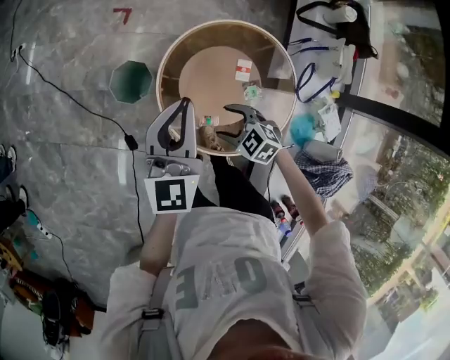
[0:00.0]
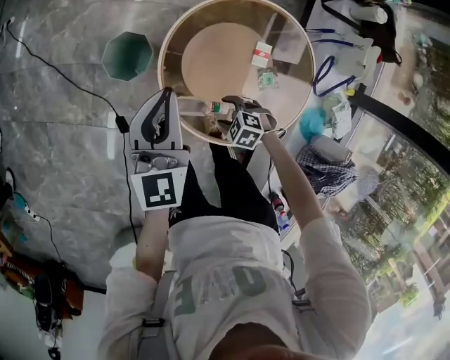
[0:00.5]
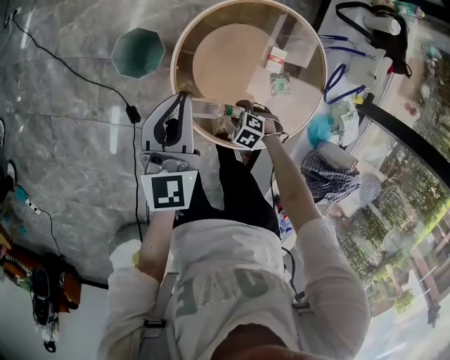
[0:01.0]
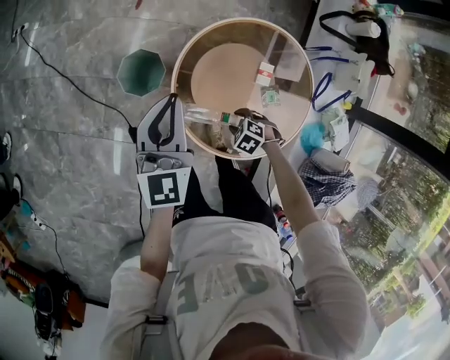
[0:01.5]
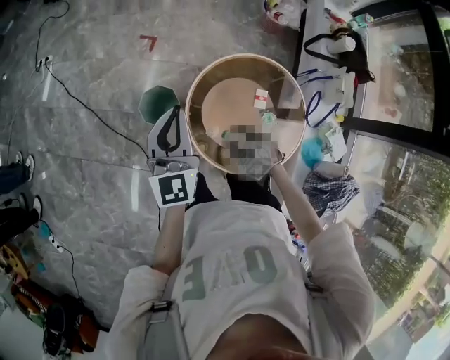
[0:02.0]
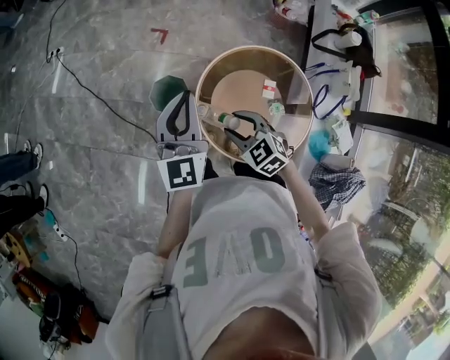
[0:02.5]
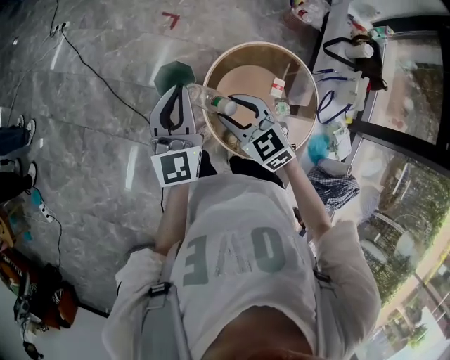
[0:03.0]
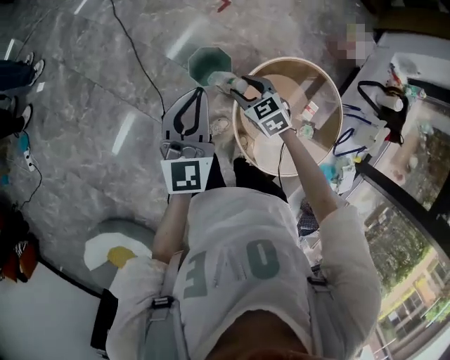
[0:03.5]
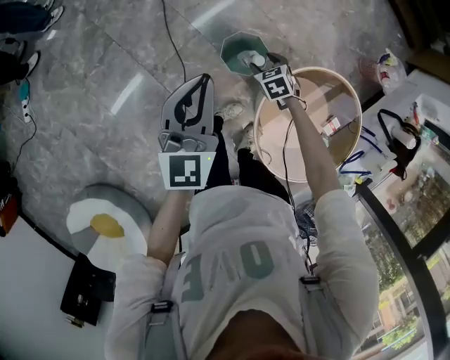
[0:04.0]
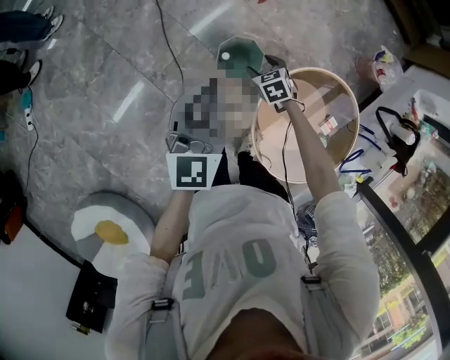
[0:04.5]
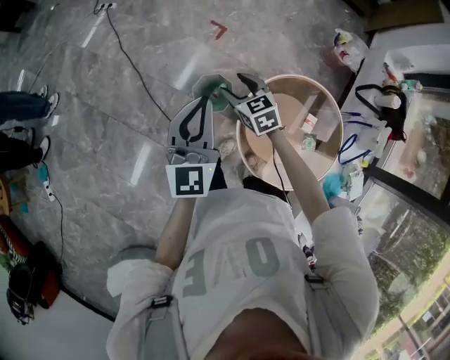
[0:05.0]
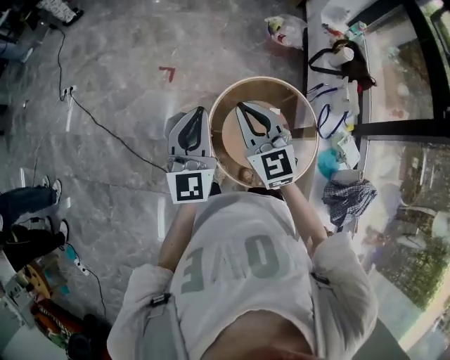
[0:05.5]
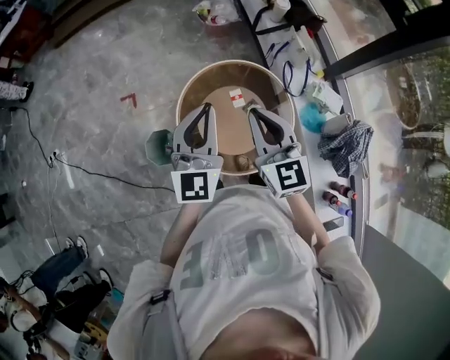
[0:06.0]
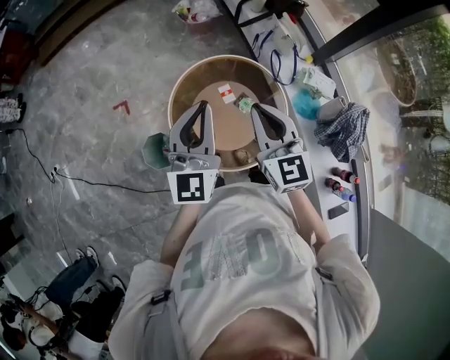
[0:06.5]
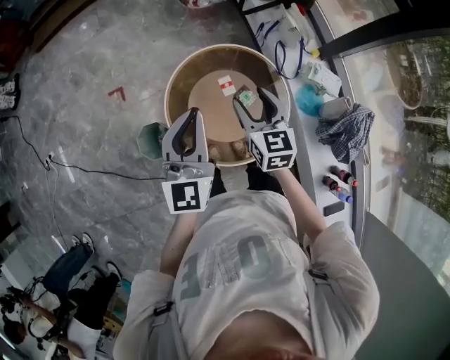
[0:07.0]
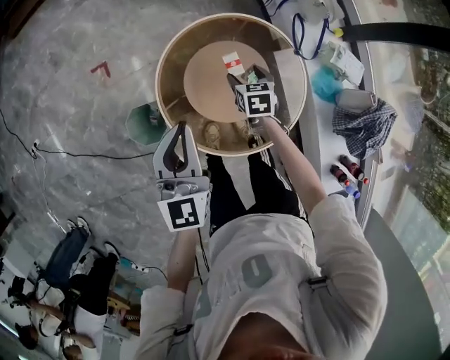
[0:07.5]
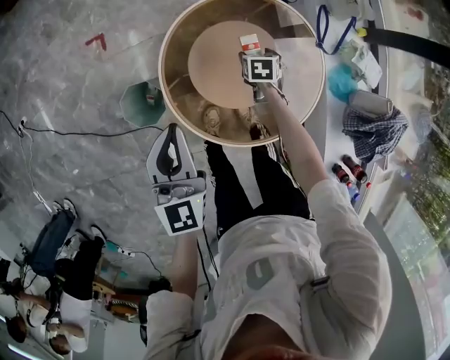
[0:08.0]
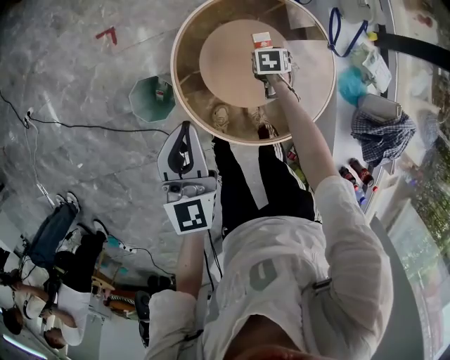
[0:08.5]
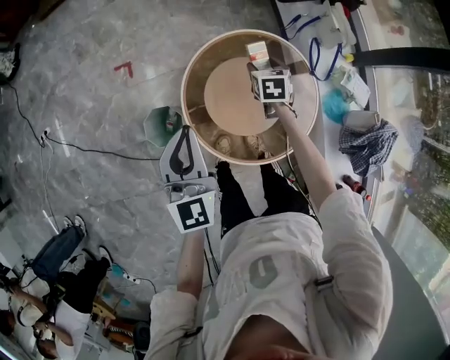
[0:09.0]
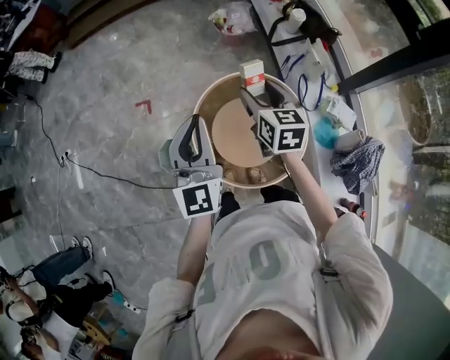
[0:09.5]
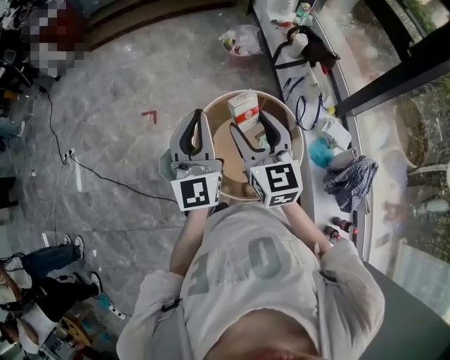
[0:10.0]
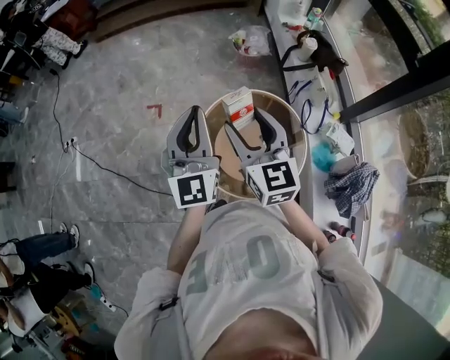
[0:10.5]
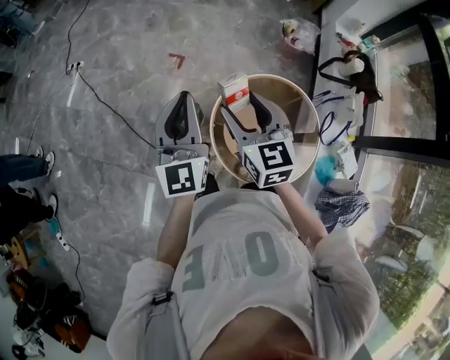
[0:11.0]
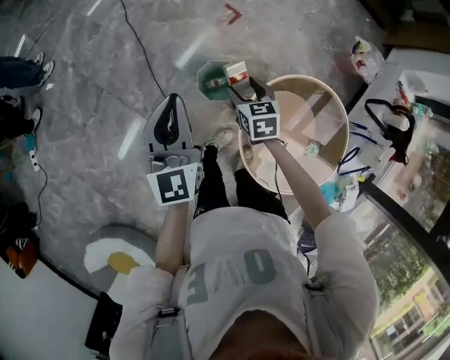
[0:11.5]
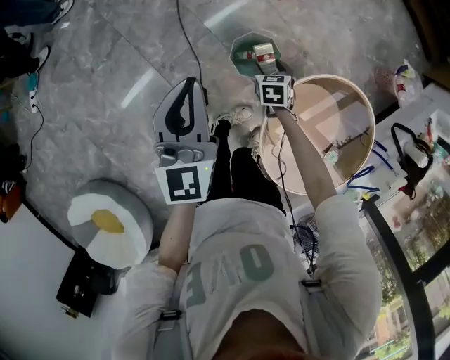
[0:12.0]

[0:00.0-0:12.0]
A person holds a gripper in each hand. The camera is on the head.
0.0 to 2.0 s: The left gripper moves approximately 10 cm downward and comes back. The right gripper travels downward and back again, roughly 20 cm each way.
2.0 to 4.0 s: The right gripper goes roughly 35 cm forward and to the left, and travels upward and back again, some 20 cm each way; the left gripper shifts approximately 25 cm to the left, and changes its angle by approximately 30 degrees.
4.0 to 6.0 s: The pair of grippers is taken roughly 40 cm. The right gripper heads upward, covering some 40 cm, tips its fingers upward by some 50 degrees, and closes, while the left gripper turns by roughly 60 degrees.
6.0 to 8.0 s: The left gripper is displaced downward and to the left by approximately 25 cm, and rotates about 30 degrees, while the right gripper is displaced downward by some 50 cm, tilts its fingers roughly 60 degrees downward, and opens up.
8.0 to 10.0 s: The left gripper is displaced upward by roughly 25 cm, and turns by about 30 degrees. The right gripper is displaced upward by roughly 60 cm, and tilts its fingers some 60 degrees upward.
10.0 to 12.0 s: The left gripper changes place by about 50 cm, and turns by about 60 degrees; the right gripper travels downward by roughly 50 cm, and tips its fingers downward by about 50 degrees.

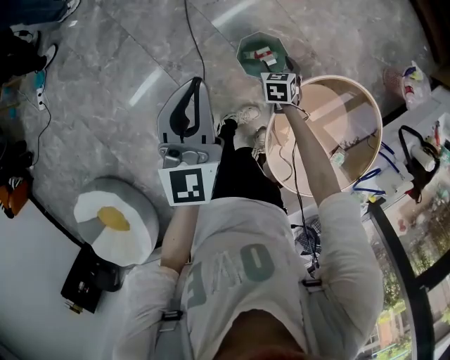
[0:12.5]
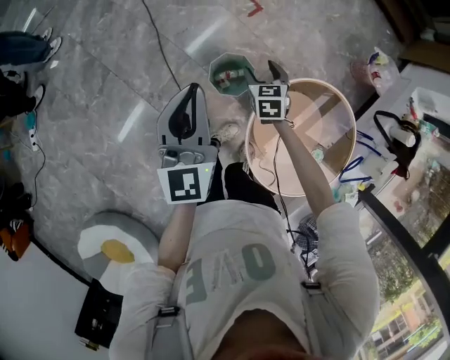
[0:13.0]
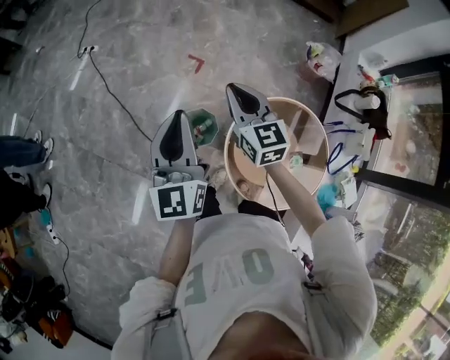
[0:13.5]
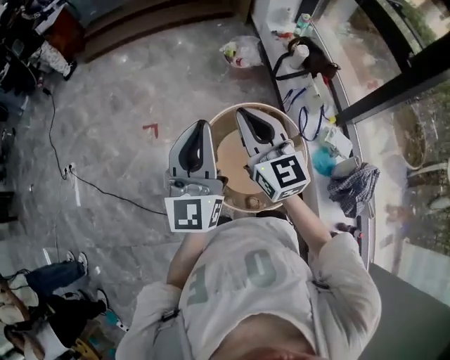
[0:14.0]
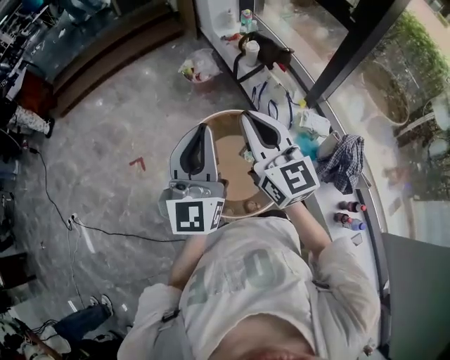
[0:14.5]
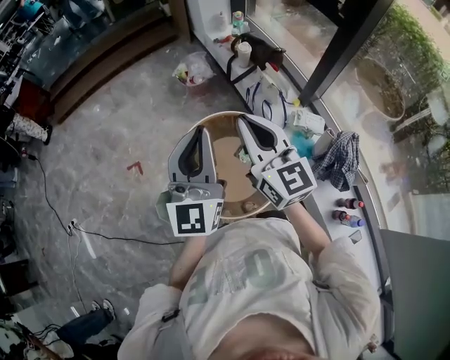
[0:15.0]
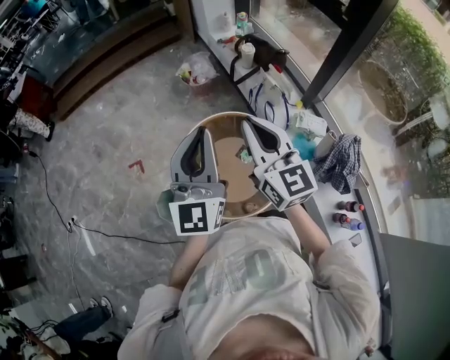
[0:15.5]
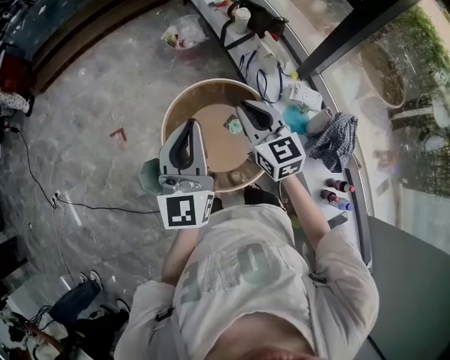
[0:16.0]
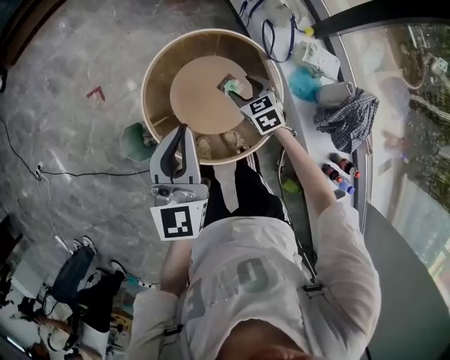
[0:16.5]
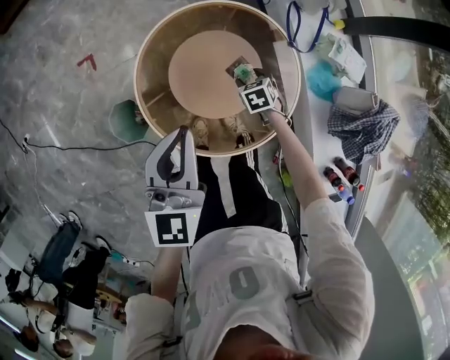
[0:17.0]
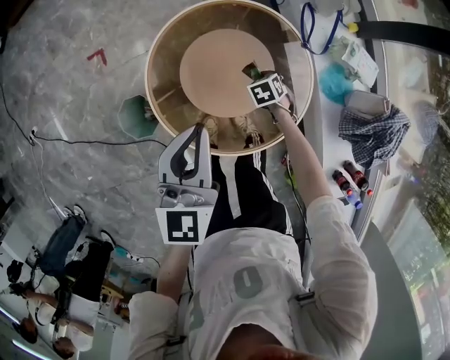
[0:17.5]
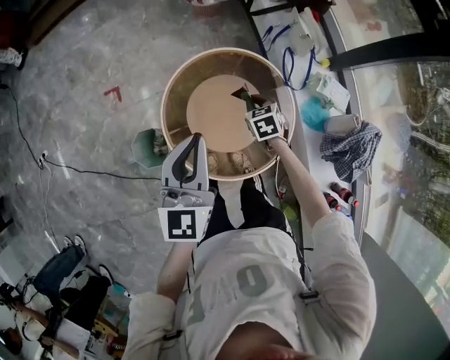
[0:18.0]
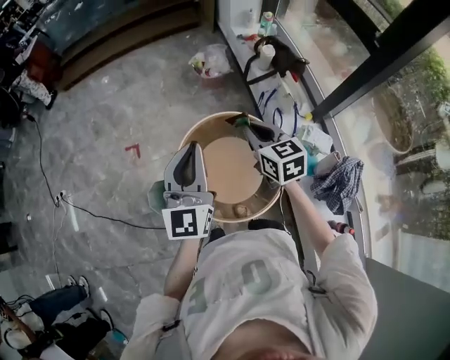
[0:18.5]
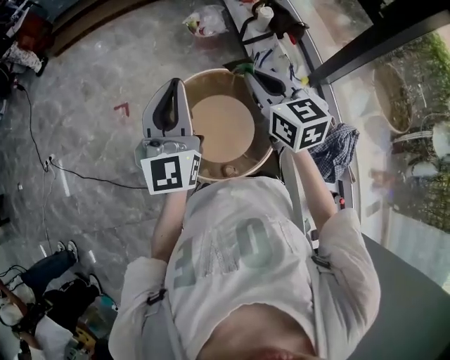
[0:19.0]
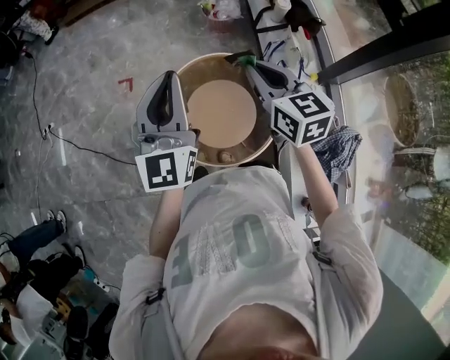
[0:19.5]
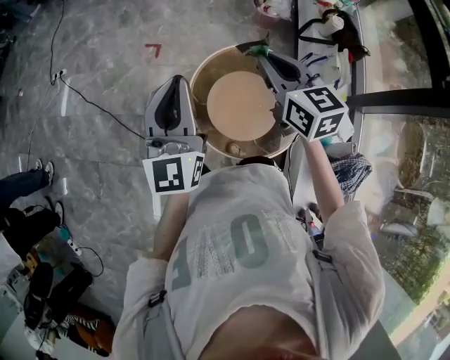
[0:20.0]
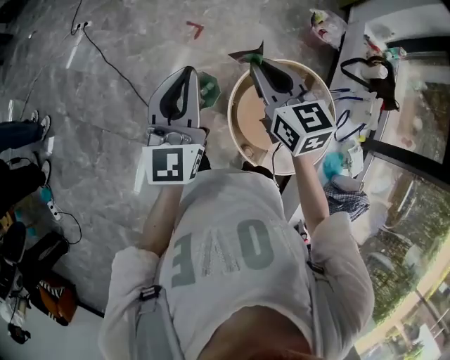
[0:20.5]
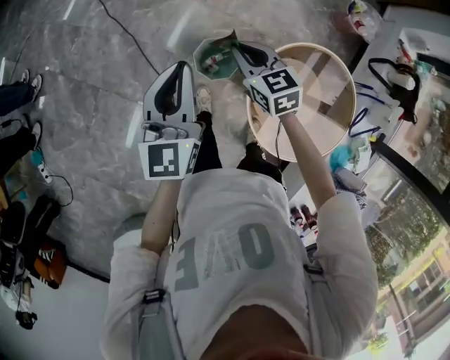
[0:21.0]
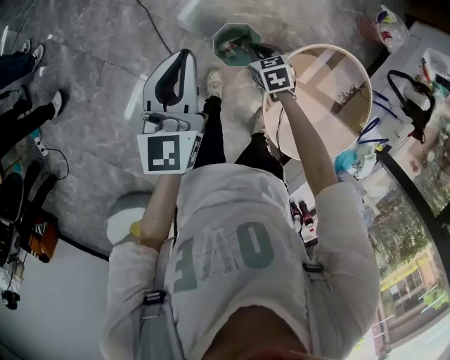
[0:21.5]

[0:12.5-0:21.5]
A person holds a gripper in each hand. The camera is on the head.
12.5 to 14.5 s: Both grippers are carried about 50 cm. The left gripper changes its angle by some 80 degrees. The right gripper heads upward, covering roughly 60 cm, points its fingers some 60 degrees further upward, and closes its fingers.
14.5 to 17.0 s: The left gripper travels downward by some 30 cm, and points its fingers some 30 degrees further downward. Meanwhile the right gripper heads downward, covering some 70 cm, angles its fingers downward, by approximately 70 degrees, and opens.
17.0 to 19.5 s: The left gripper is displaced upward by some 25 cm, and swivels about 30 degrees. The right gripper heads upward, covering some 60 cm, tips its fingers upward by about 50 degrees, and closes.
19.5 to 21.5 s: The pair of grippers is taken about 50 cm. The left gripper turns by roughly 40 degrees, while the right gripper tilts its fingers approximately 40 degrees downward.

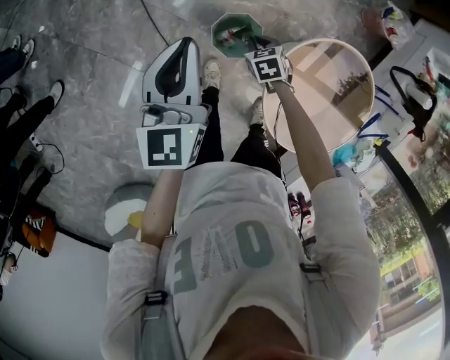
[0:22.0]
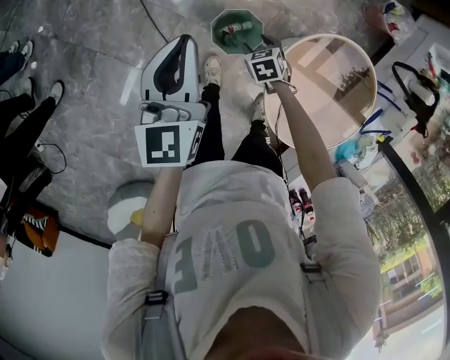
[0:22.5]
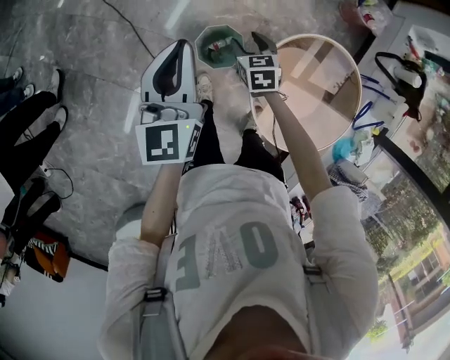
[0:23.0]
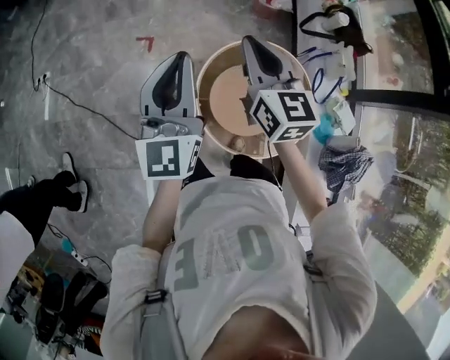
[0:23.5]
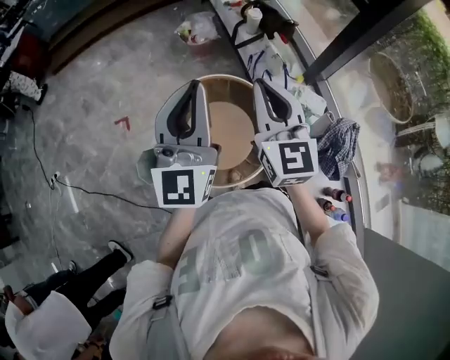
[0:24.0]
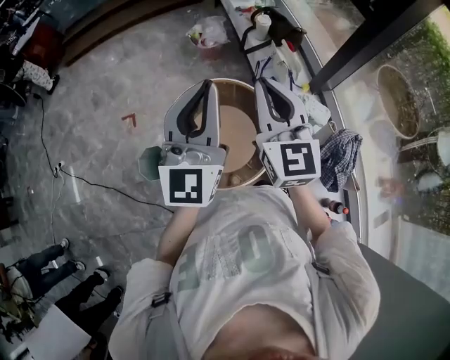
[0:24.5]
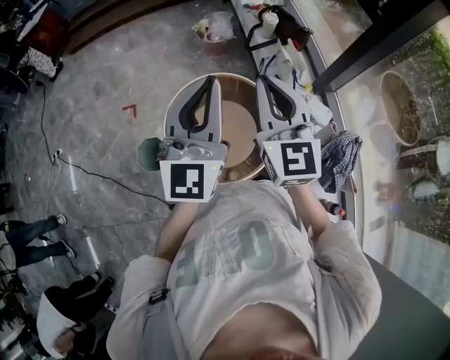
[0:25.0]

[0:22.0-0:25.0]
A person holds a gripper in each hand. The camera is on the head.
22.0 to 23.5 s: The right gripper goes approximately 50 cm upward, tips its fingers upward by roughly 60 degrees, and opens and closes again. The left gripper ends up about 35 cm from where it was, and turns by approximately 40 degrees.
23.5 to 25.0 s: The grippers both shift to the right by some 35 cm. The right gripper rotates roughly 30 degrees. The left gripper rotates about 20 degrees.

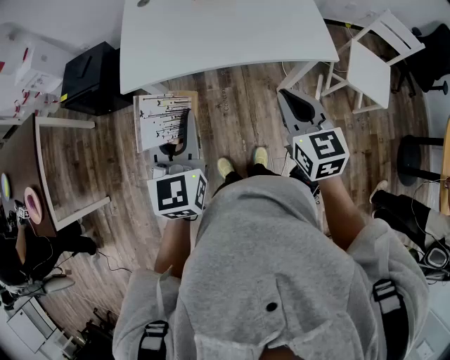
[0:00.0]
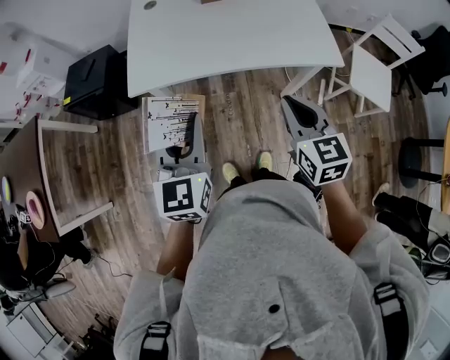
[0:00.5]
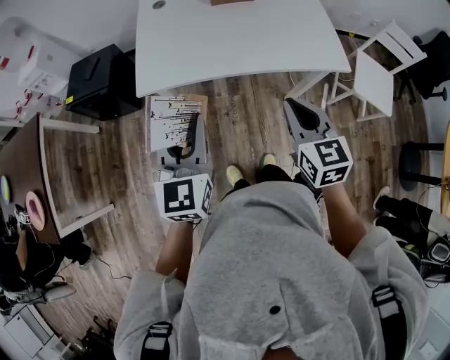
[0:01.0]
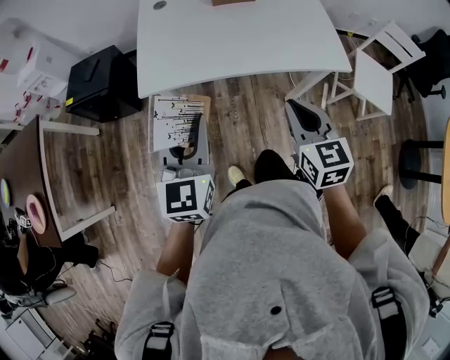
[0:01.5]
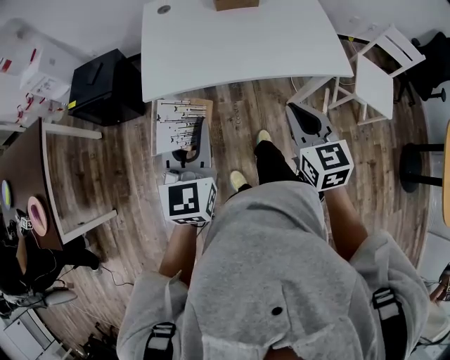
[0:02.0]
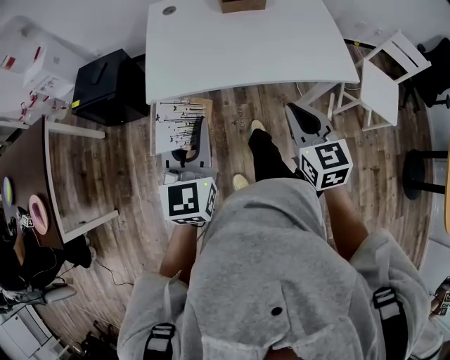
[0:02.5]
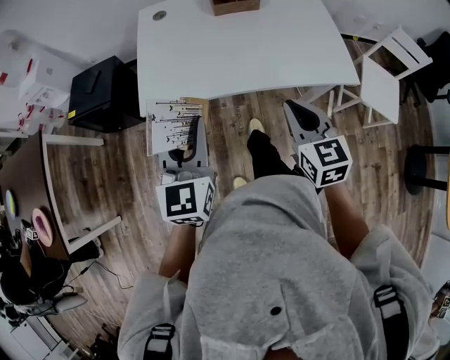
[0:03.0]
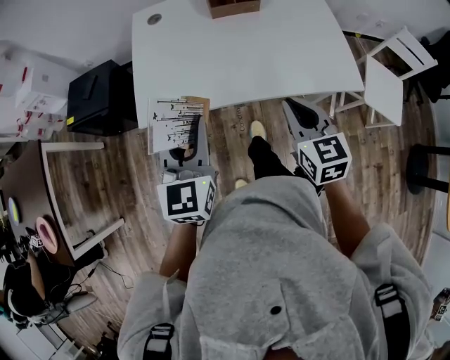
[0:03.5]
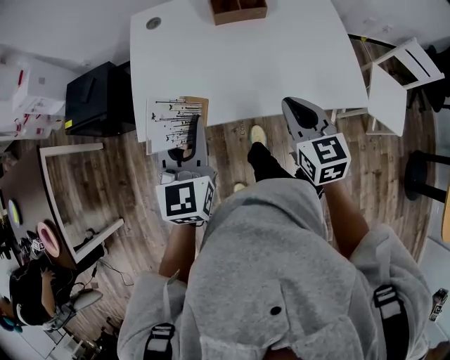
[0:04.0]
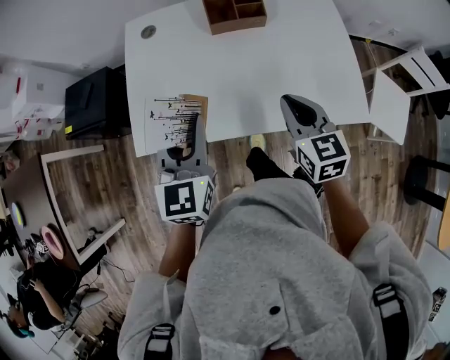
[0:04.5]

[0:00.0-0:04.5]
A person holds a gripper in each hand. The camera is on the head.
0.0 to 2.0 s: The grippers both shift to the left by about 10 cm.
2.0 to 4.5 s: The two grippers go about 25 cm forward.
